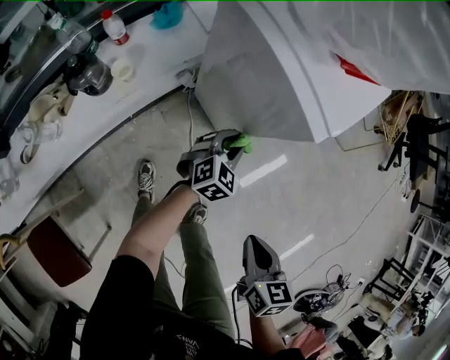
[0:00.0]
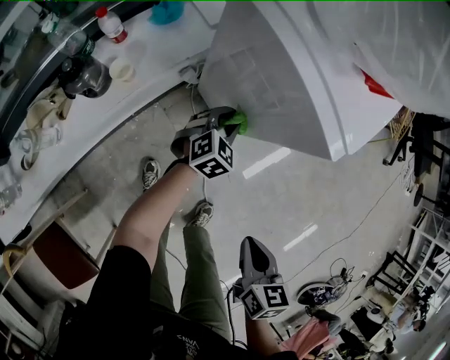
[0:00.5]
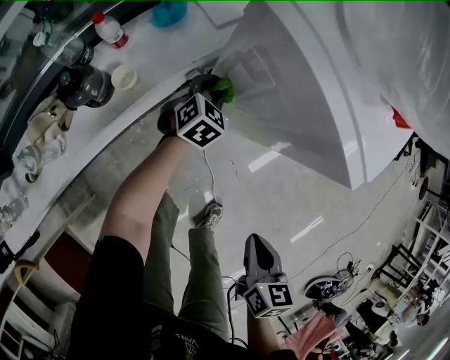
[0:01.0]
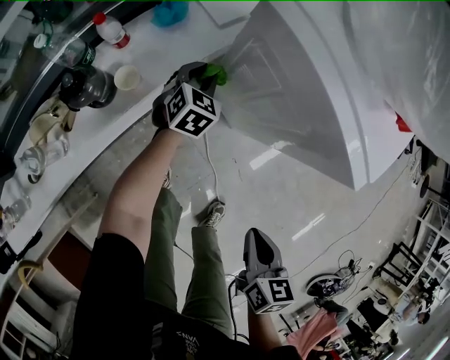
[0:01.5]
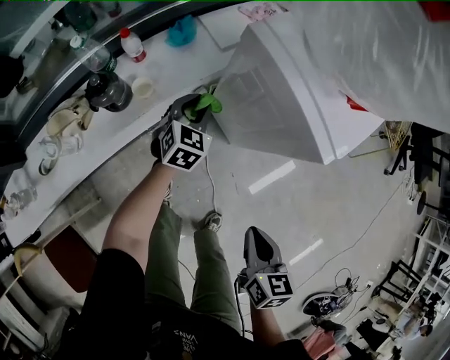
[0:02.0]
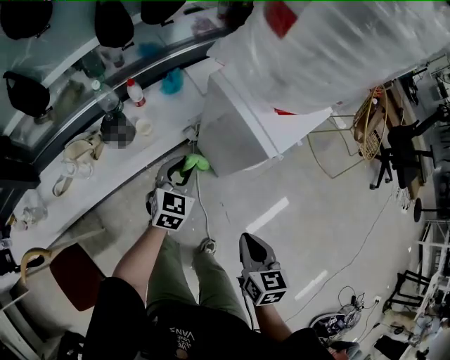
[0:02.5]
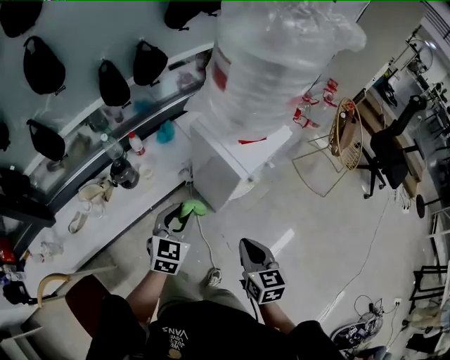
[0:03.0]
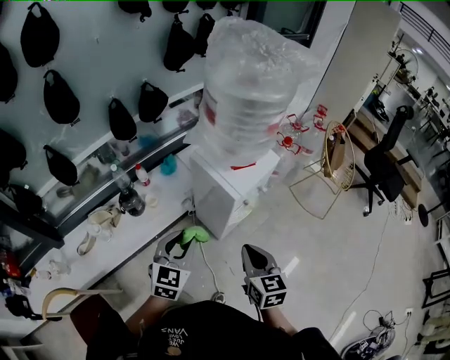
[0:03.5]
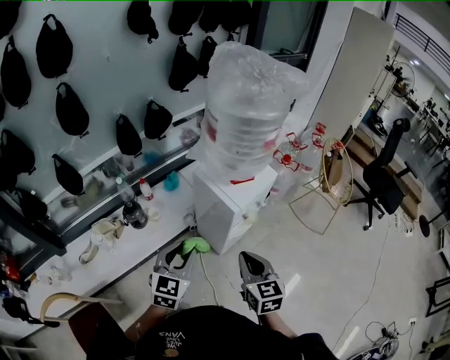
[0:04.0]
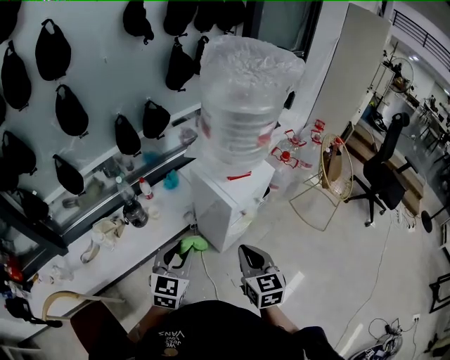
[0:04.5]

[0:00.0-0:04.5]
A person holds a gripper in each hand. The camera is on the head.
0:00.0 to 0:02.0: The right gripper shifts approximately 5 cm to the left, while the left gripper is displaced to the left and forward by about 20 cm, and turns by about 20 degrees.
0:02.0 to 0:04.5: The left gripper heads upward and backward, covering approximately 40 cm, and changes its angle by approximately 20 degrees. Meanwhile the right gripper heads upward, covering roughly 25 cm, and swivels about 30 degrees.

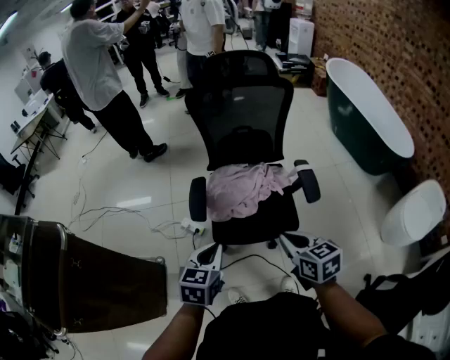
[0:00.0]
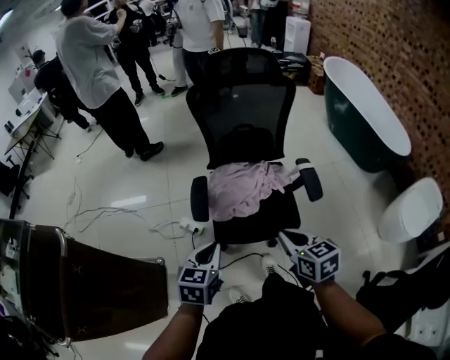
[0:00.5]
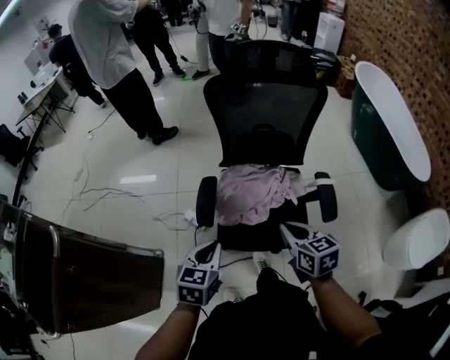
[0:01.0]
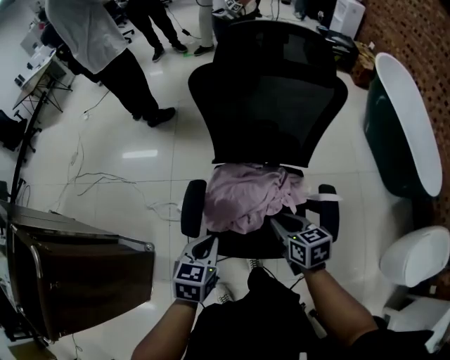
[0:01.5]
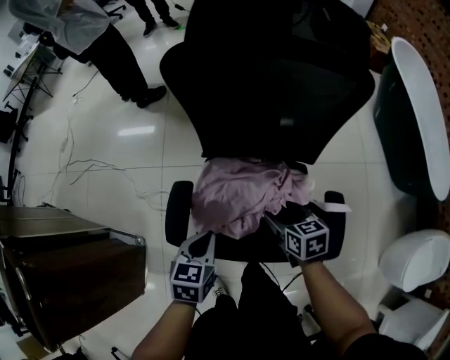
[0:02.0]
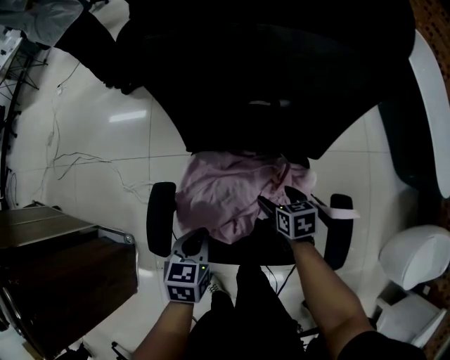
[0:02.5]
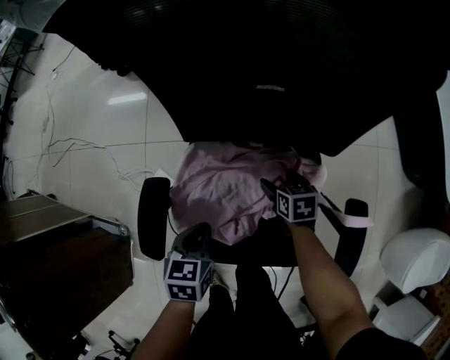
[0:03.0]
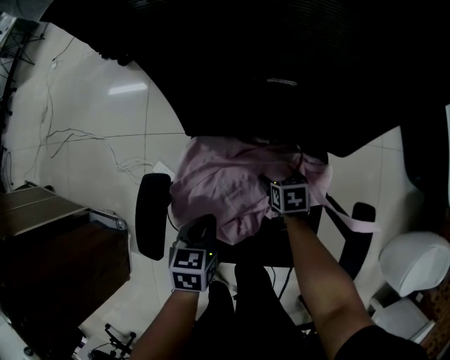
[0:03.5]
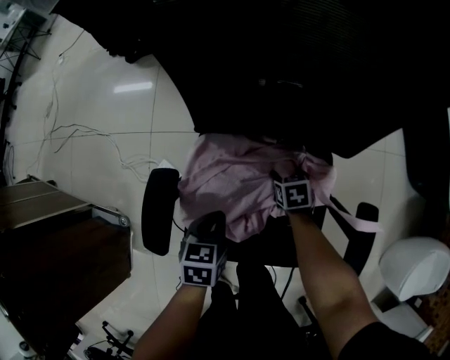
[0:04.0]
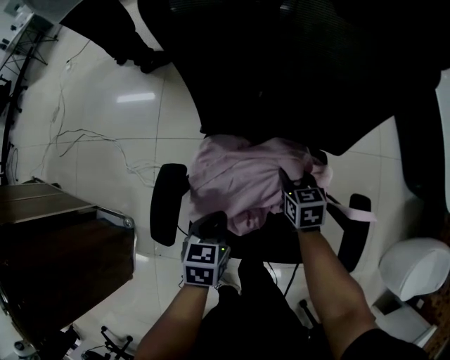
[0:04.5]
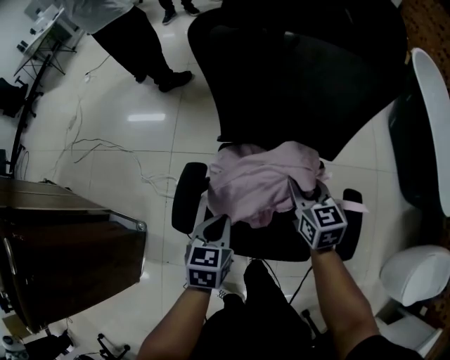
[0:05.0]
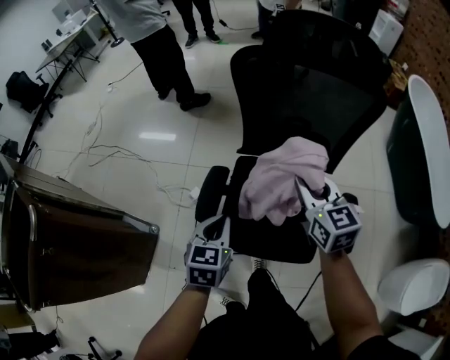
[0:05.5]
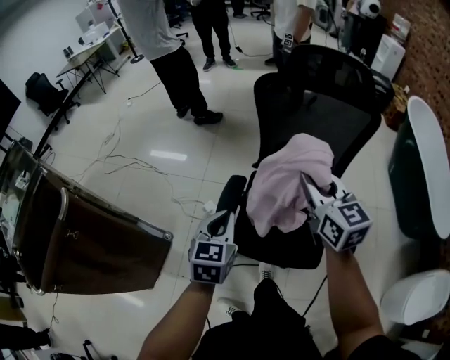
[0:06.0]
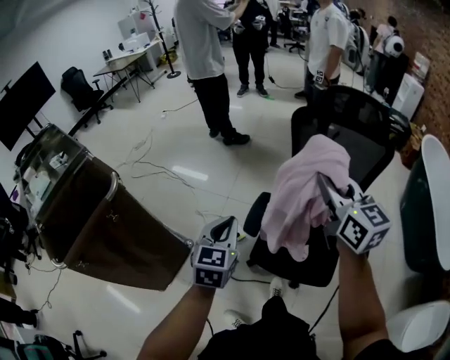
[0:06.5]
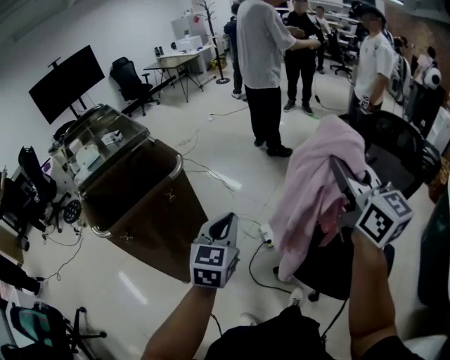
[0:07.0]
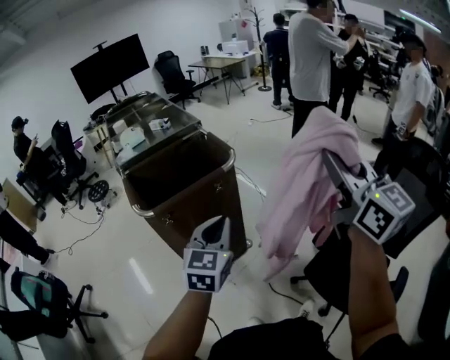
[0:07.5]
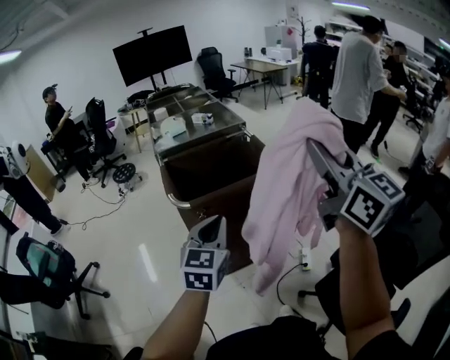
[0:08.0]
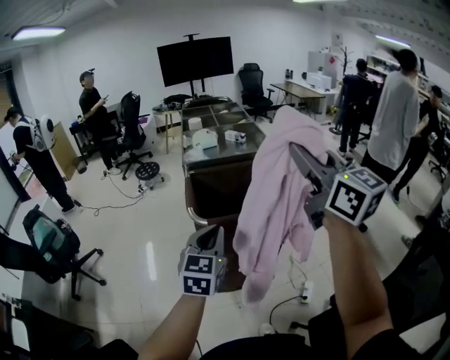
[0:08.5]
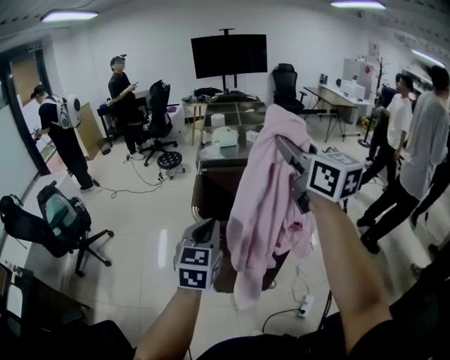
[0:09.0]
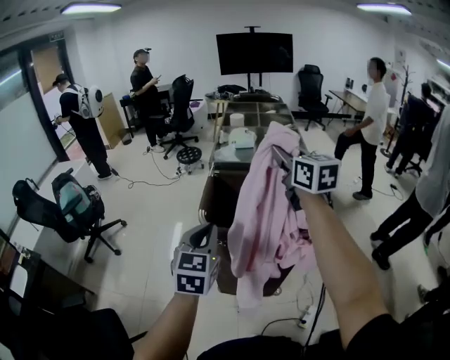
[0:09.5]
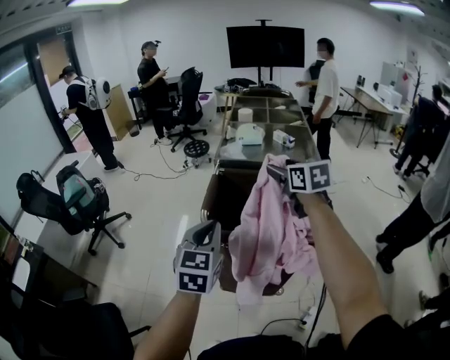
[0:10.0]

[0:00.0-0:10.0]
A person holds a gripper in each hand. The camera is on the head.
0:00.0 to 0:02.0: The two grippers go roughly 35 cm forward and downward. The right gripper opens up.
0:02.0 to 0:04.0: The left gripper heads downward, covering roughly 20 cm; the right gripper travels downward and forward by about 25 cm, and swivels about 20 degrees.
0:04.0 to 0:06.0: The left gripper moves upward and to the left, about 35 cm, and turns by roughly 30 degrees. The right gripper goes roughly 60 cm upward, tips its fingers upward by approximately 60 degrees, and closes up.
0:06.0 to 0:08.0: The two grippers travel together, approximately 50 cm. The left gripper changes its angle by about 50 degrees. Meanwhile the right gripper rotates roughly 60 degrees.
0:08.0 to 0:10.0: The left gripper changes place by about 15 cm, and rotates about 30 degrees. Meanwhile the right gripper changes place by roughly 40 cm, tilts its fingers approximately 30 degrees downward, and opens its fingers.

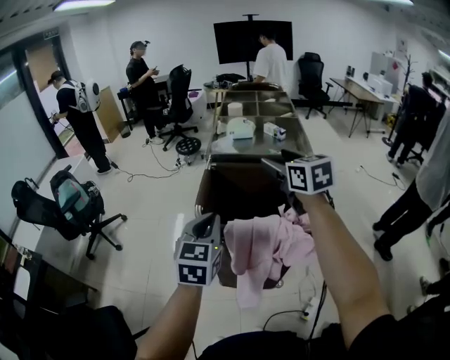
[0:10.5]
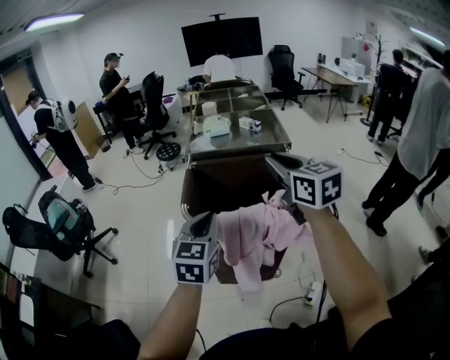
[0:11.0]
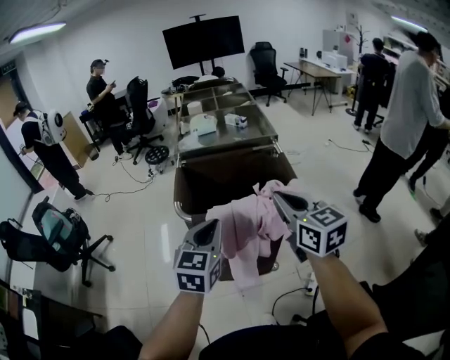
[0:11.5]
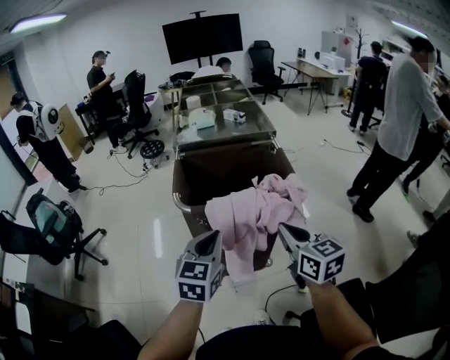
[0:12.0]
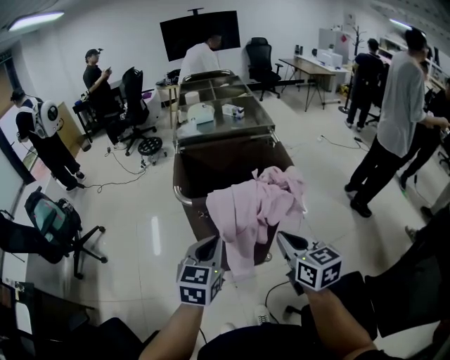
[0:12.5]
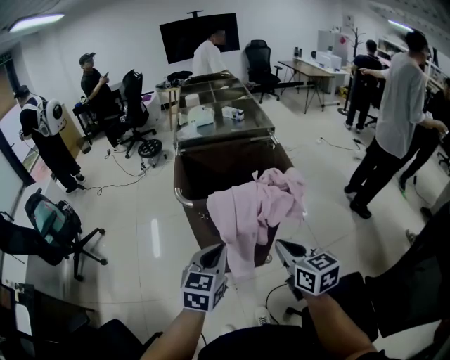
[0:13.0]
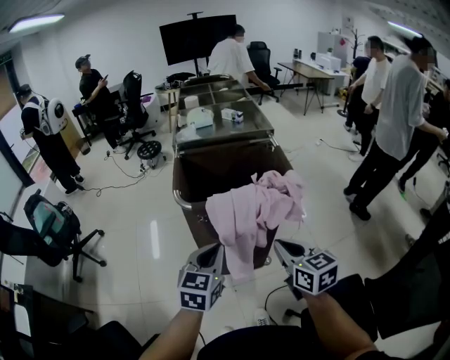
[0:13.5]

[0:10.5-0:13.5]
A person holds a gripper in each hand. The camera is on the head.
0:10.5 to 0:12.0: The right gripper shifts some 30 cm backward and downward, and closes up, while the left gripper heads backward and downward, covering some 10 cm.
0:12.0 to 0:13.5: The left gripper ends up roughly 5 cm from where it was, while the right gripper moves roughly 5 cm.

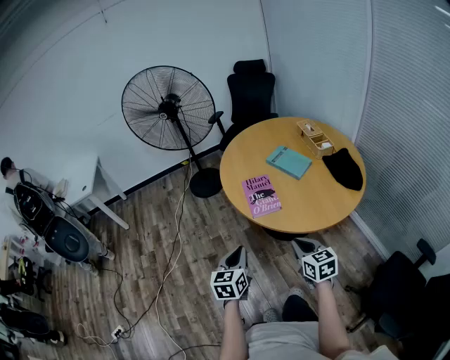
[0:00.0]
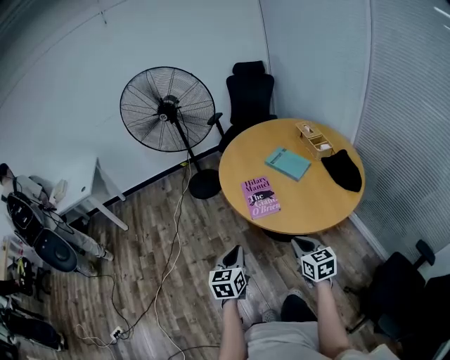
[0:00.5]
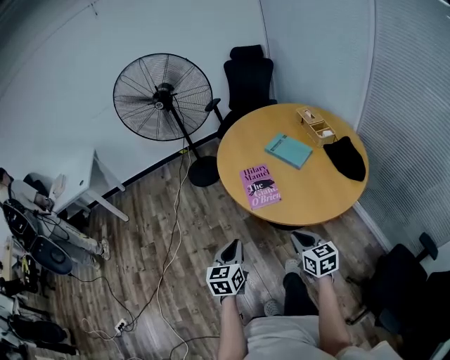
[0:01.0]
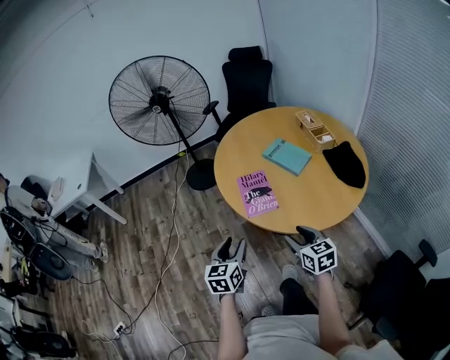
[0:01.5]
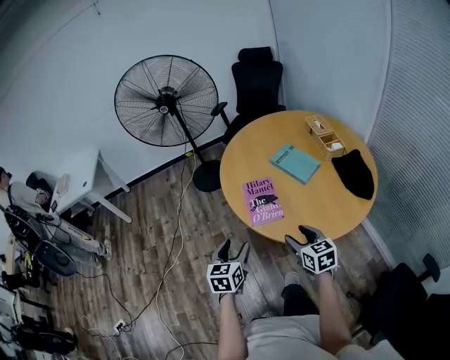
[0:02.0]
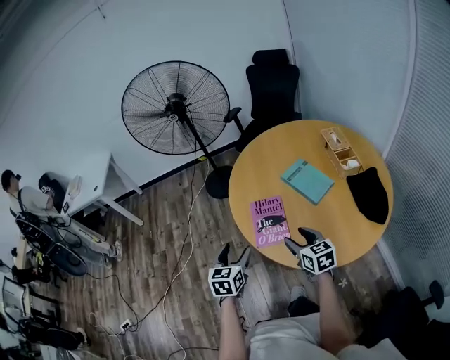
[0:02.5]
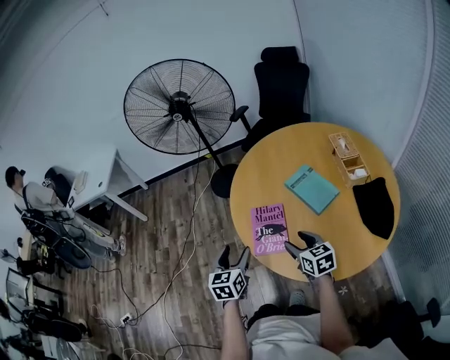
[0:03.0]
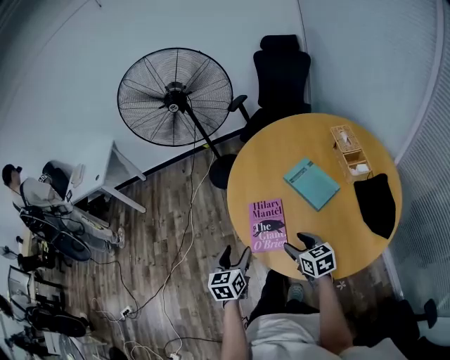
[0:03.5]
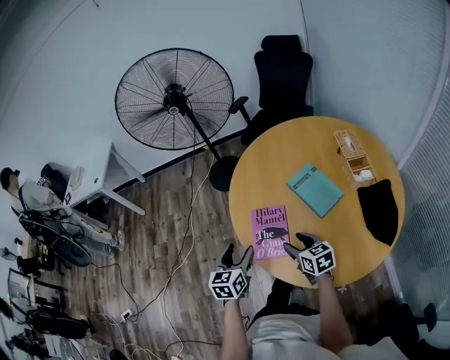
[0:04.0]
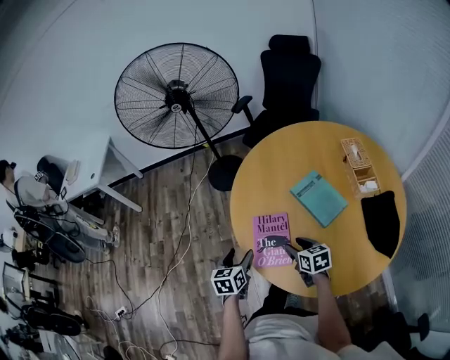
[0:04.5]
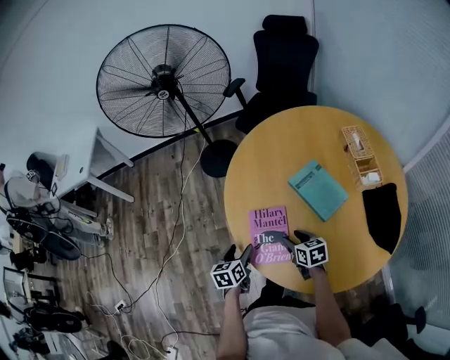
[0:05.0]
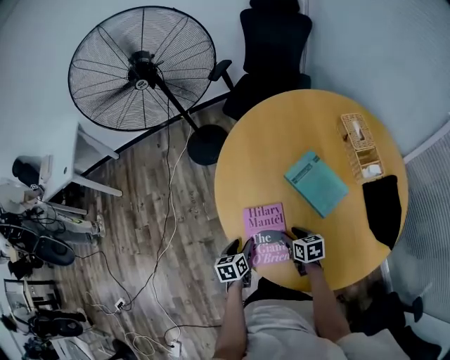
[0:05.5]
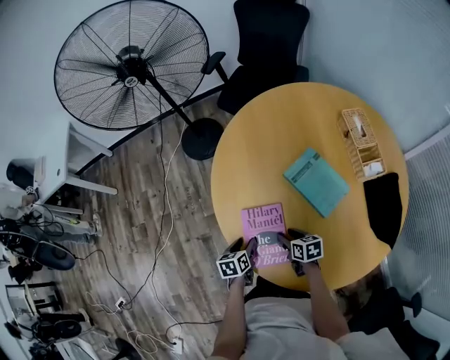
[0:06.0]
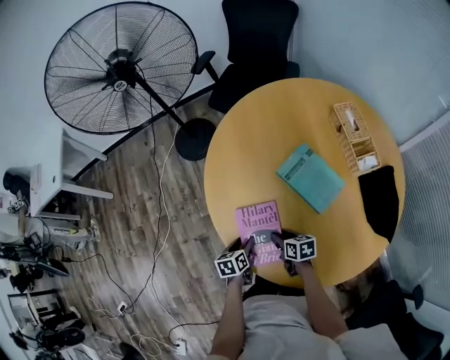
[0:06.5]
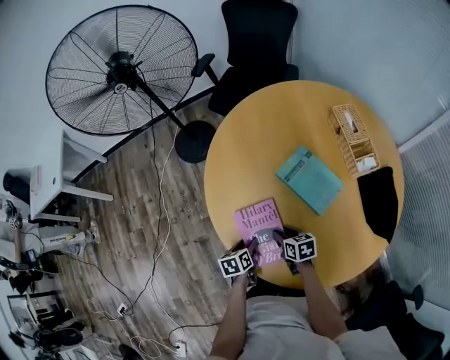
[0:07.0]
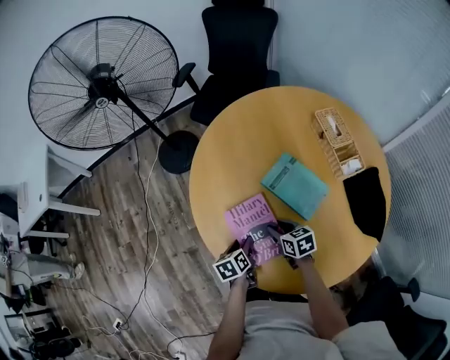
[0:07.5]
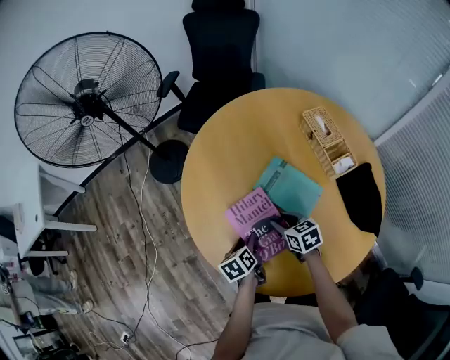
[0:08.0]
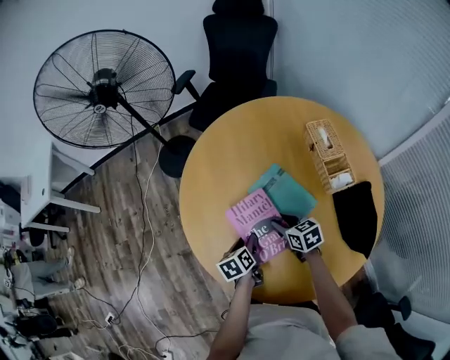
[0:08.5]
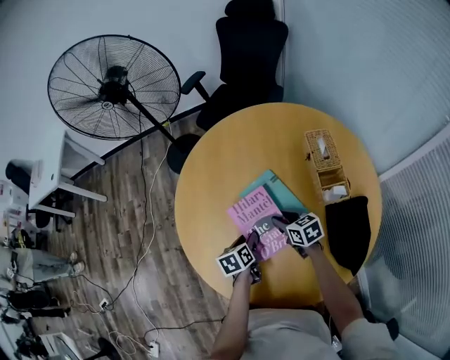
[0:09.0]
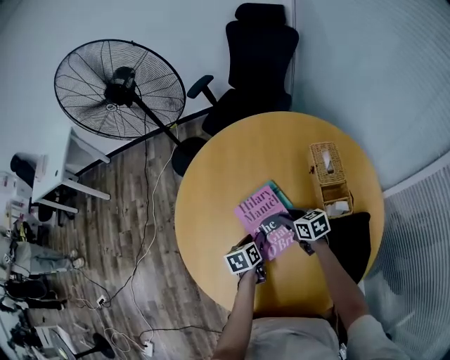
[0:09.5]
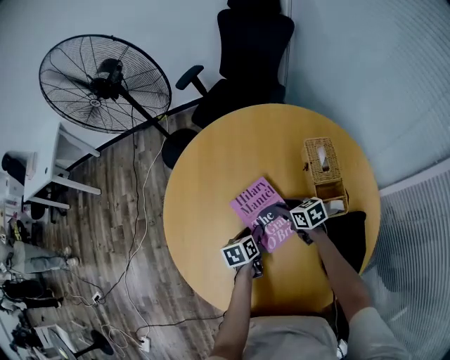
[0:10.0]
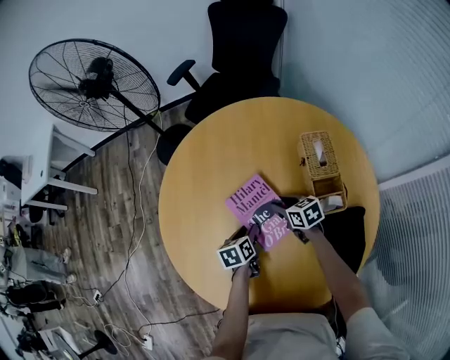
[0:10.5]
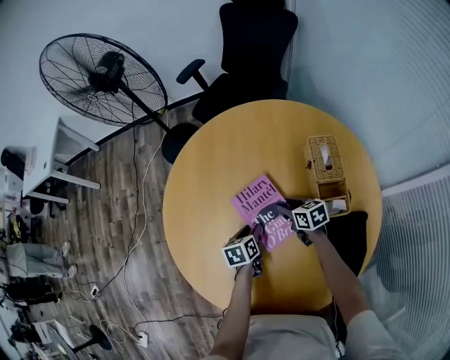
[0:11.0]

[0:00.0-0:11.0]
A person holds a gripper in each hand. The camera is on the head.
0:00.0 to 0:02.0: Both grippers travel together forward, some 10 cm. The right gripper opens up. Meanwhile the left gripper opens its fingers.
0:02.0 to 0:03.5: The left gripper is displaced forward and to the right by about 15 cm; the right gripper goes approximately 15 cm forward.
0:03.5 to 0:05.5: The grippers both shift downward and forward by some 20 cm. The right gripper swivels approximately 20 degrees. Meanwhile the left gripper turns by approximately 30 degrees.
0:05.5 to 0:07.5: The right gripper travels forward by about 5 cm. Meanwhile the left gripper is displaced to the right by roughly 5 cm.
0:07.5 to 0:09.0: The two grippers go some 15 cm to the right.
0:09.0 to 0:11.0: The left gripper shifts about 5 cm to the right. The right gripper heads to the right and forward, covering some 10 cm.
